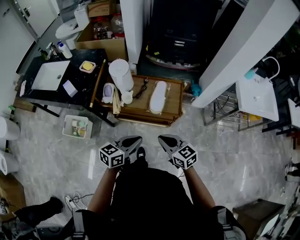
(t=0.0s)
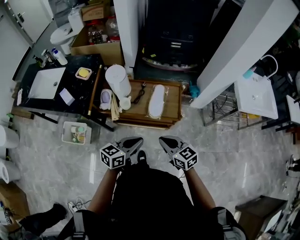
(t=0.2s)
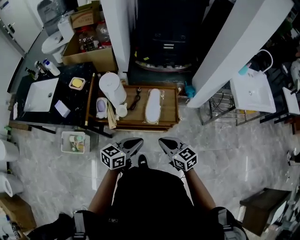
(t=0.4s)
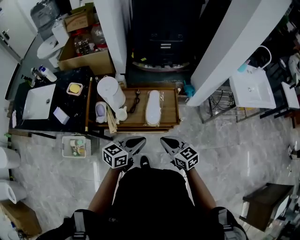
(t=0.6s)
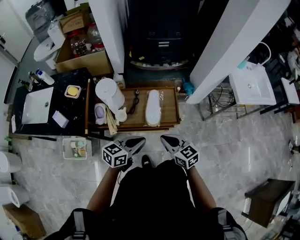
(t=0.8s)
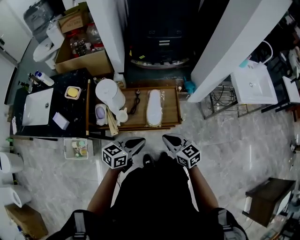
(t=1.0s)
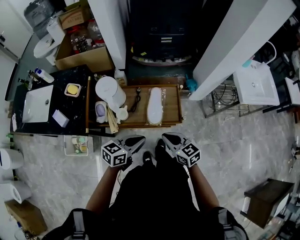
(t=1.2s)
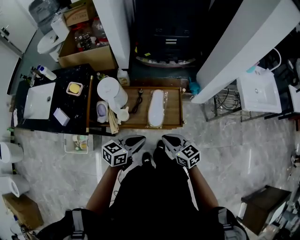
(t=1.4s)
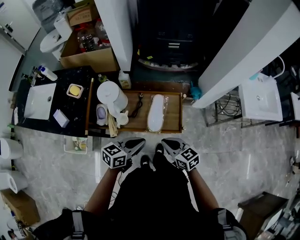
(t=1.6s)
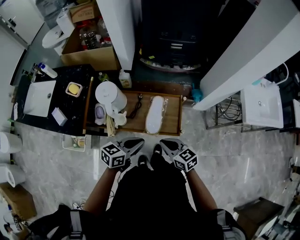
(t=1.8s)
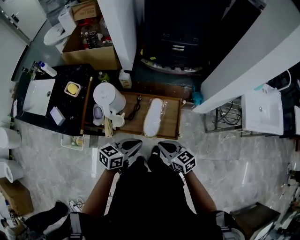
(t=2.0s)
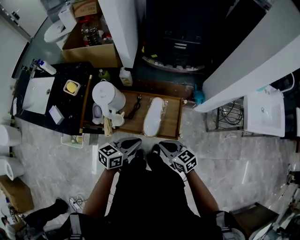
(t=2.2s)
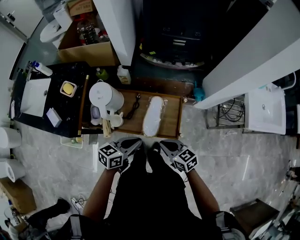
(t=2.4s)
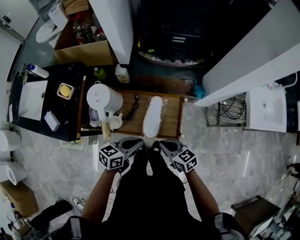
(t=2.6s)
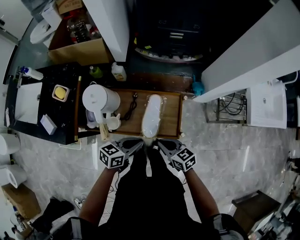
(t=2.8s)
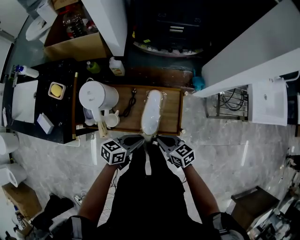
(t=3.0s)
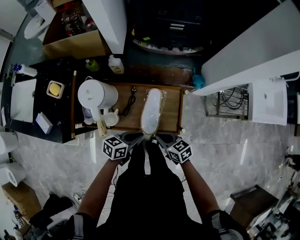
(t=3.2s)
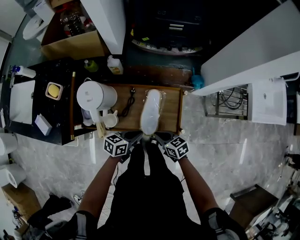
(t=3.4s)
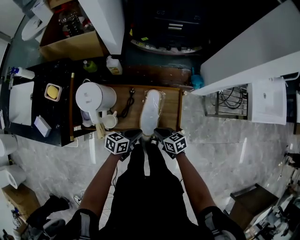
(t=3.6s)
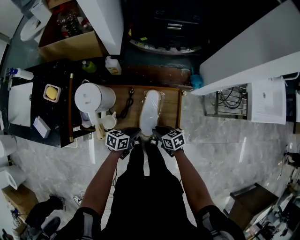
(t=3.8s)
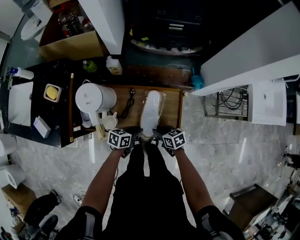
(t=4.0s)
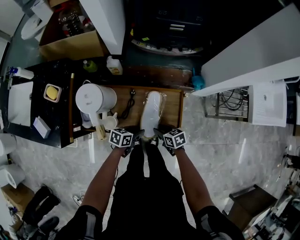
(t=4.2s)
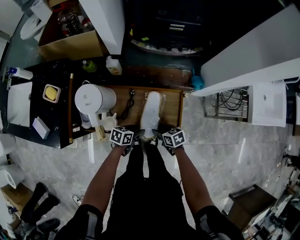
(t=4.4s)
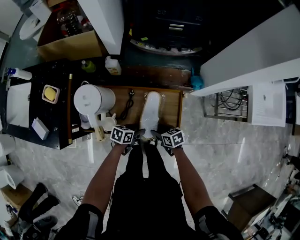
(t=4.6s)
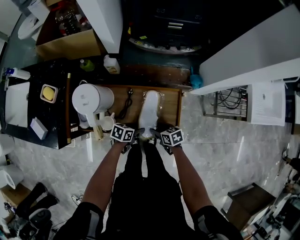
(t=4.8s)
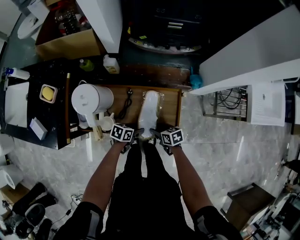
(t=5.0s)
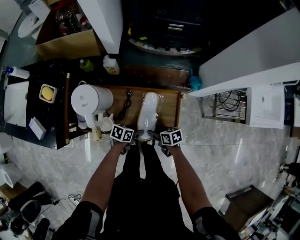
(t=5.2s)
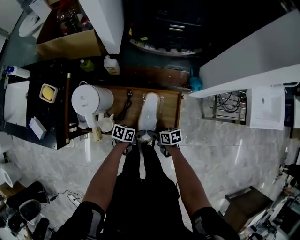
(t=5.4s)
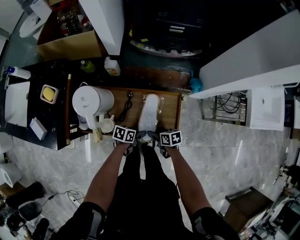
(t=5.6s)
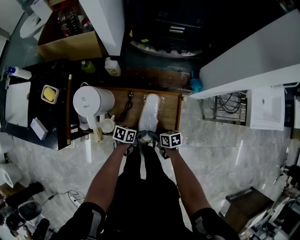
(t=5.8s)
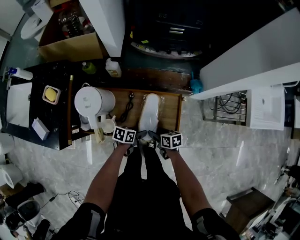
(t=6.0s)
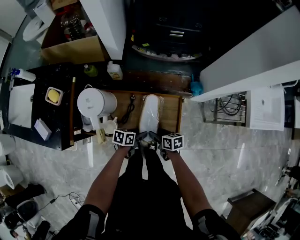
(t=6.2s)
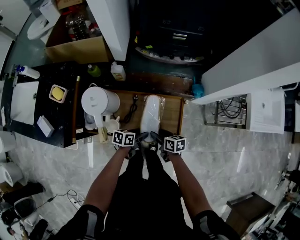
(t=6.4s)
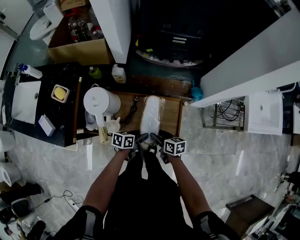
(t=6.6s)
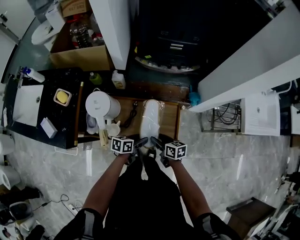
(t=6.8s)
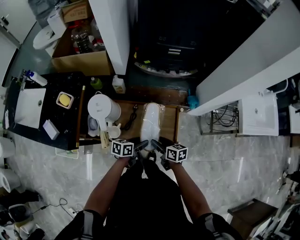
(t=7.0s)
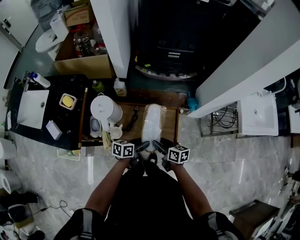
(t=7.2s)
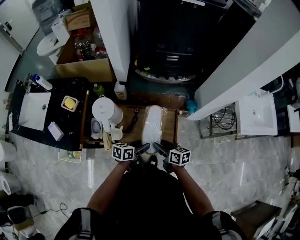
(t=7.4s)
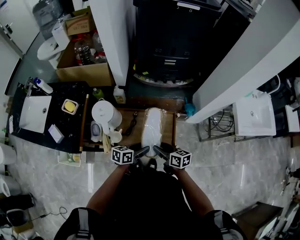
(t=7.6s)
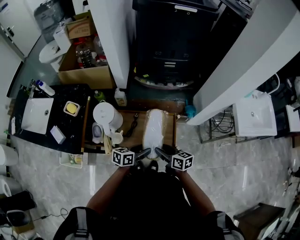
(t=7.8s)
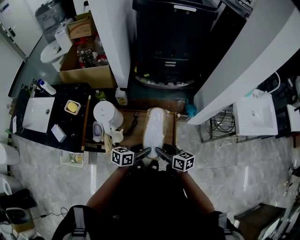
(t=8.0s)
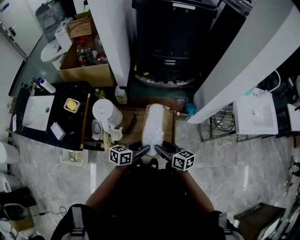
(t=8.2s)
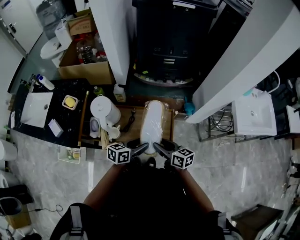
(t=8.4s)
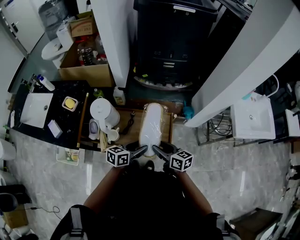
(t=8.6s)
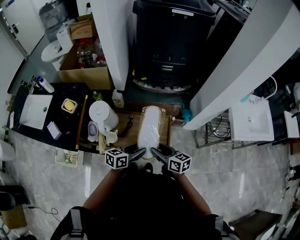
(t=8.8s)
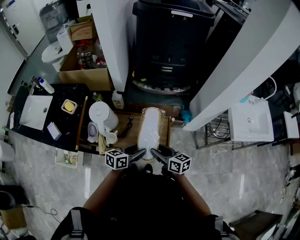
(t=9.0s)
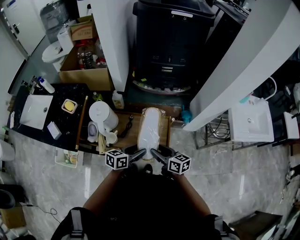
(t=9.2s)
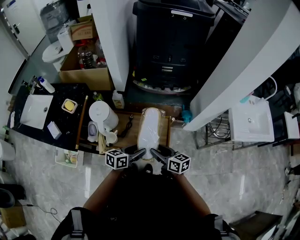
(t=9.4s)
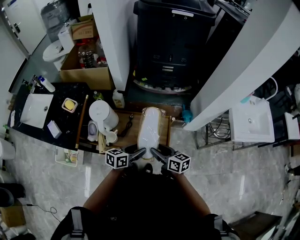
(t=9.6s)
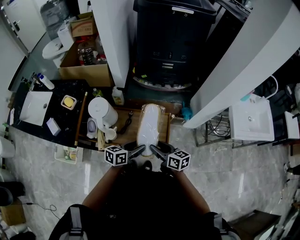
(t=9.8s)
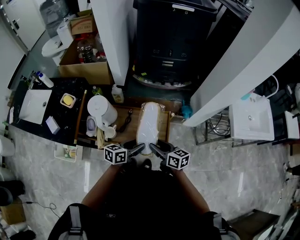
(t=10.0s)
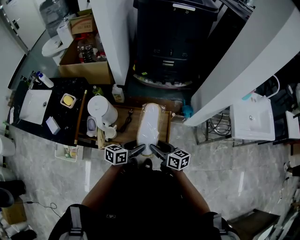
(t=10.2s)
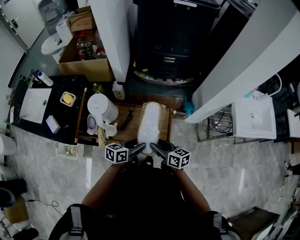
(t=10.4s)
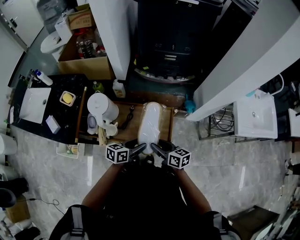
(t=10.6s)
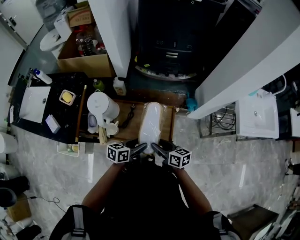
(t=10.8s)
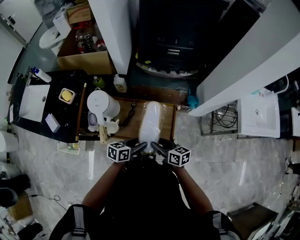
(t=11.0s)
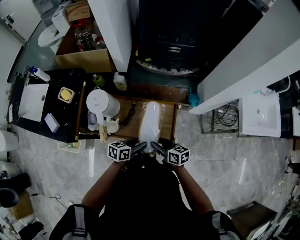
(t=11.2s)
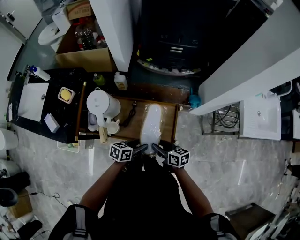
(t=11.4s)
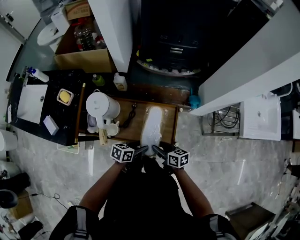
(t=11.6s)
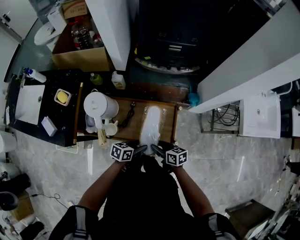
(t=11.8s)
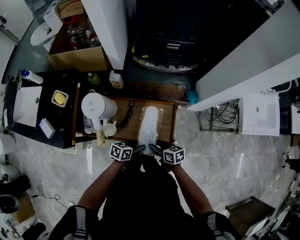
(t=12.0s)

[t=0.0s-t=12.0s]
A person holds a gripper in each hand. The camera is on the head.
t=0.0s to t=1.6s: Both grippers move forward, about 15 cm.
t=1.6s to t=3.0s: The grippers both shift downward and forward by approximately 10 cm.
t=3.0s to t=4.4s: Both grippers travel together downward, about 15 cm. The left gripper opens, while the right gripper opens up.
t=4.4s to t=6.0s: The grippers stay close to where they were, moving slightly.
t=6.0s to t=7.6s: Both grippers travel together upward, about 20 cm. The left gripper rotates about 20 degrees, while the right gripper turns by roughly 20 degrees.
t=7.6s to t=9.0s: Both grippers move upward, some 5 cm.
t=9.0s to t=10.4s: There are only small adjustments of the grippers.
t=10.4s to t=12.0s: Both grippers travel together downward, approximately 10 cm.

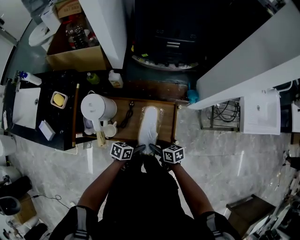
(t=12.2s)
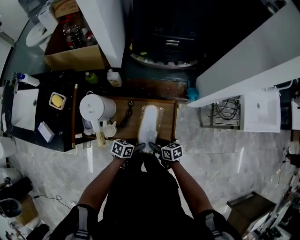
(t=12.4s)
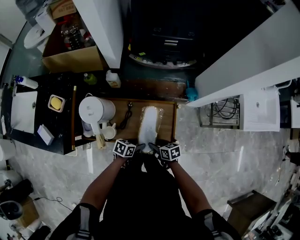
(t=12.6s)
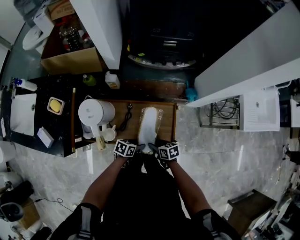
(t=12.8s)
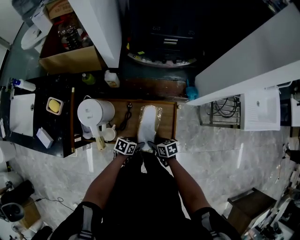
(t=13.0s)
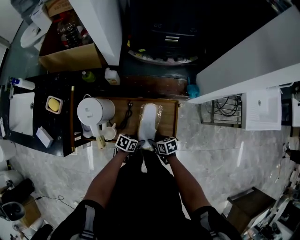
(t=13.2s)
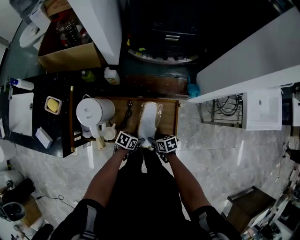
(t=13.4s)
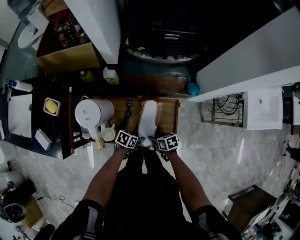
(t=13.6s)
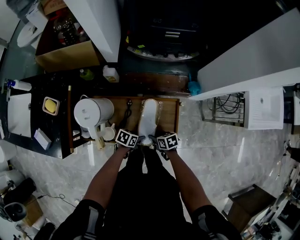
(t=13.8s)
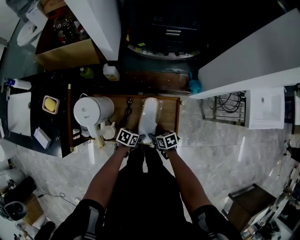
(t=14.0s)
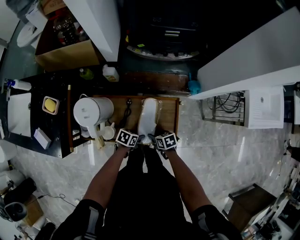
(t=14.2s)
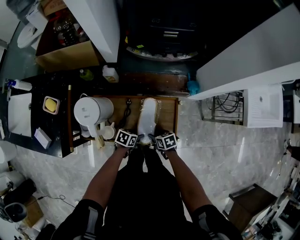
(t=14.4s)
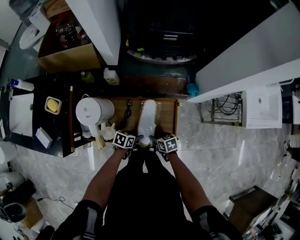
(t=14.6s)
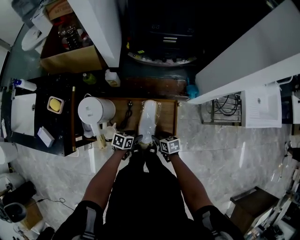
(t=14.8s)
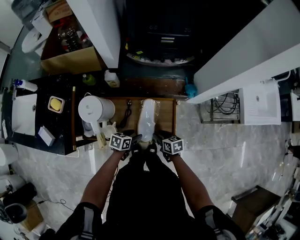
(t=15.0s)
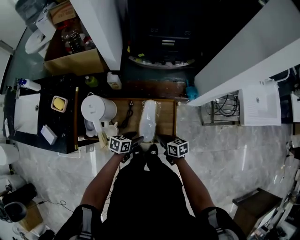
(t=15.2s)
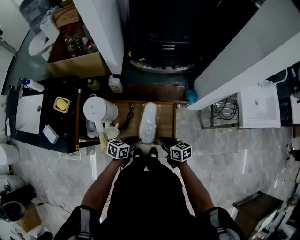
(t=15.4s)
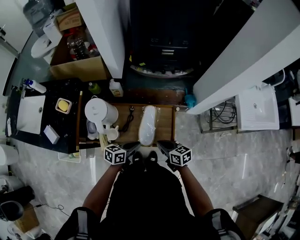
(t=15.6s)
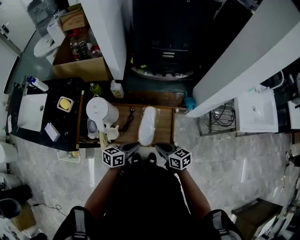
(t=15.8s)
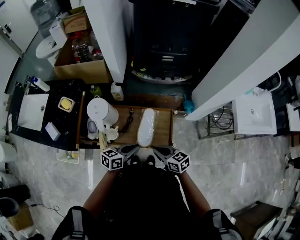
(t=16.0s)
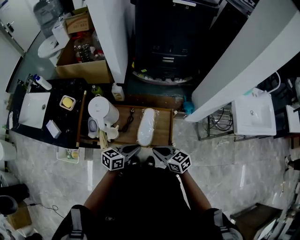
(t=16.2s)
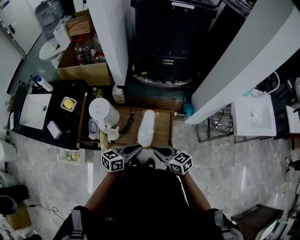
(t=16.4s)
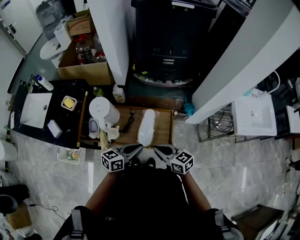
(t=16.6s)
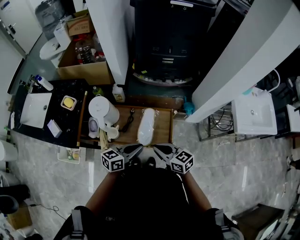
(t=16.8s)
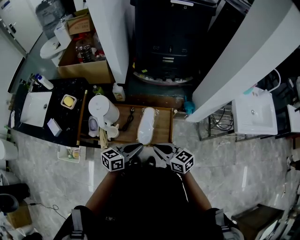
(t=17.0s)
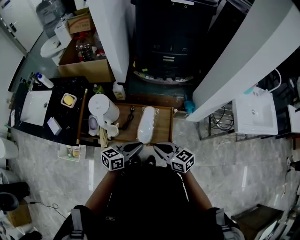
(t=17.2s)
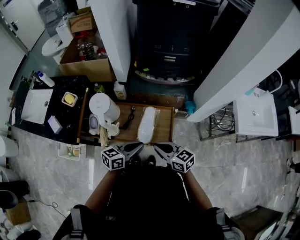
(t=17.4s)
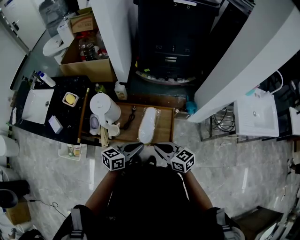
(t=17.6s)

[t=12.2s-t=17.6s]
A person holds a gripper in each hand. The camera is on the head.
t=12.2s to t=13.6s: Both grippers move downward, approximately 10 cm.
t=13.6s to t=15.0s: The two grippers go about 5 cm upward.
t=15.0s to t=16.2s: The right gripper is displaced upward and backward by some 20 cm, turns by approximately 30 degrees, and closes its fingers. The left gripper goes some 20 cm upward, turns by about 30 degrees, and closes its fingers.
t=16.2s to t=17.6s: The grippers move only a little.

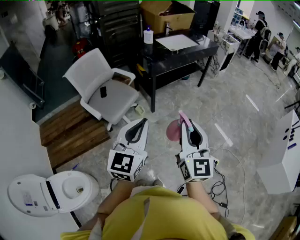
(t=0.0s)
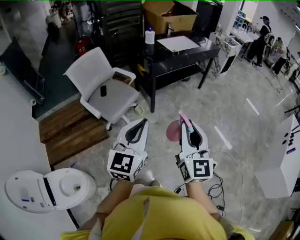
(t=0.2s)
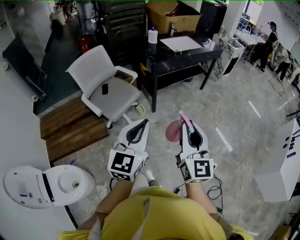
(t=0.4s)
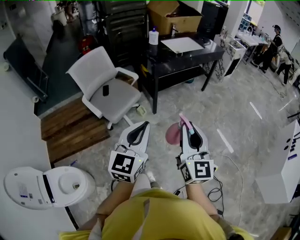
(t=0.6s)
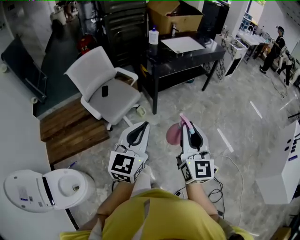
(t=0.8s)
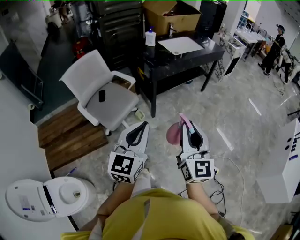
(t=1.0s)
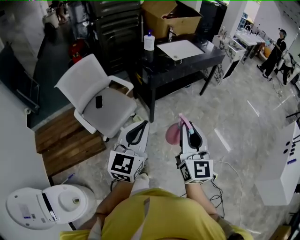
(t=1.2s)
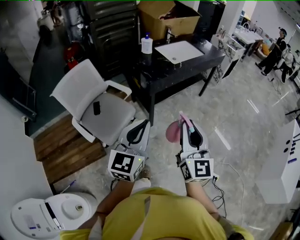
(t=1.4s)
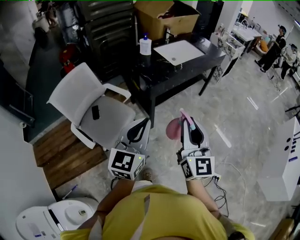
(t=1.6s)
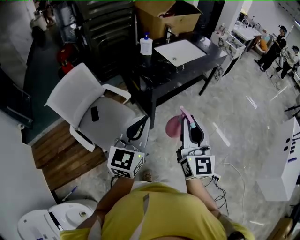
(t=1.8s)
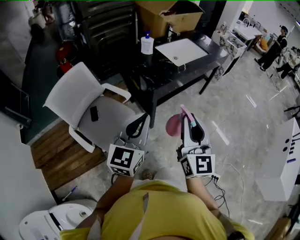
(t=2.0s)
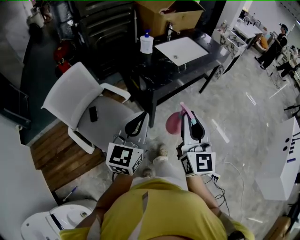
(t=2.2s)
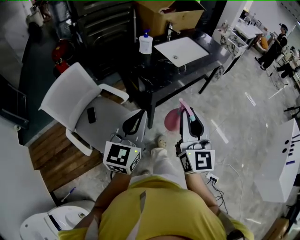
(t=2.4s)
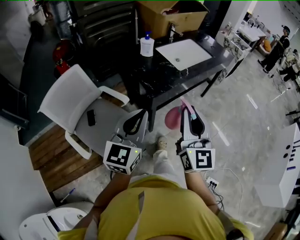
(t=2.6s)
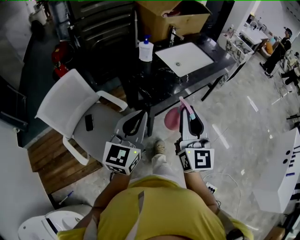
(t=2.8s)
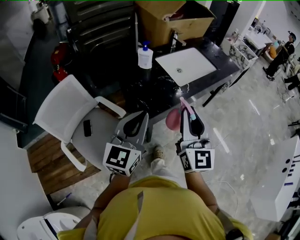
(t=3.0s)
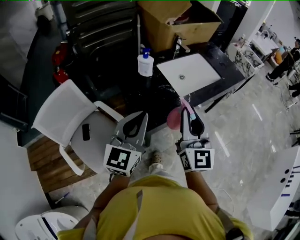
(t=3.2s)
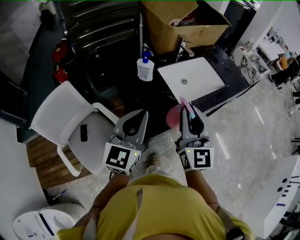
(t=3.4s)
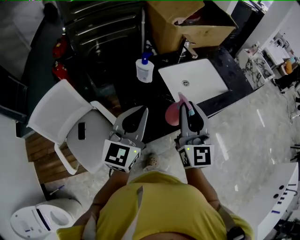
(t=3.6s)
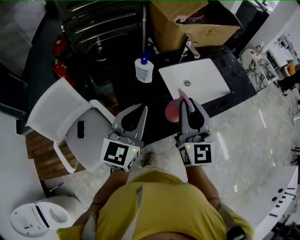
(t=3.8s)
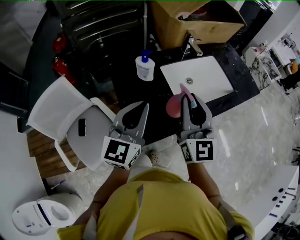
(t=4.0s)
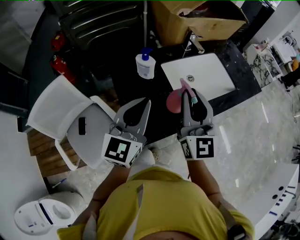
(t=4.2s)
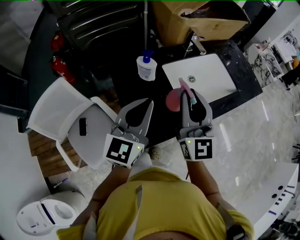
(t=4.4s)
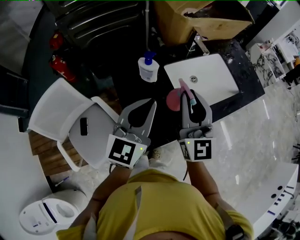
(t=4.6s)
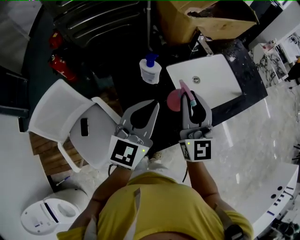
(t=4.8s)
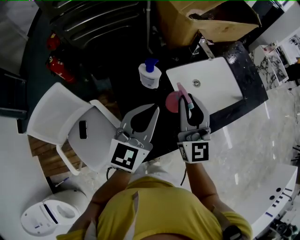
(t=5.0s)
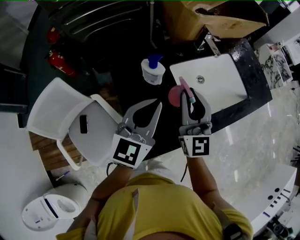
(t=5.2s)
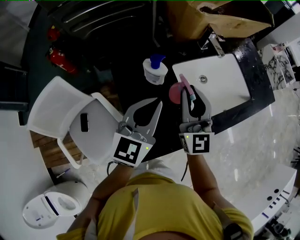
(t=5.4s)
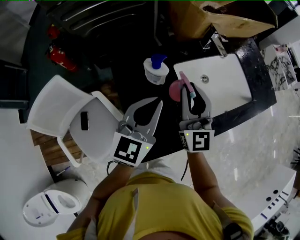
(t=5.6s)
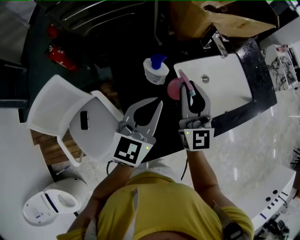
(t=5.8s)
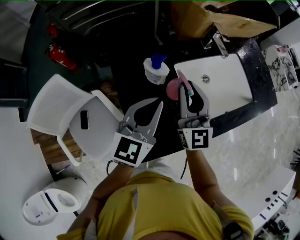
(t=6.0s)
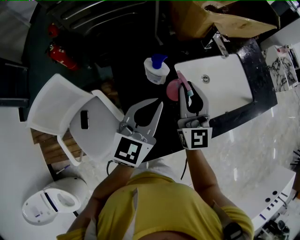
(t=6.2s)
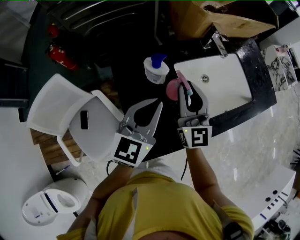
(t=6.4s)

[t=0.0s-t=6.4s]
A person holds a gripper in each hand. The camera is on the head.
t=0.0s to t=1.6s: The grippers both shift forward by about 30 cm.
t=1.6s to t=3.2s: The two grippers go about 35 cm forward.
t=3.2s to t=4.8s: The two grippers go roughly 25 cm forward.
t=4.8s to t=6.4s: The left gripper moves downward and forward, roughly 10 cm. The right gripper goes some 10 cm forward and downward.
